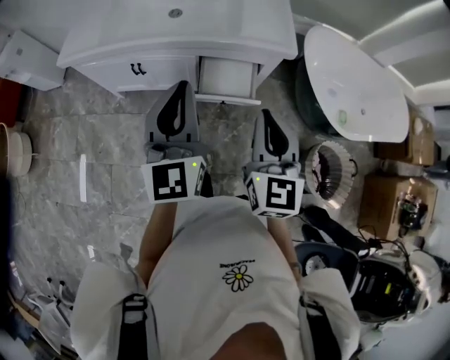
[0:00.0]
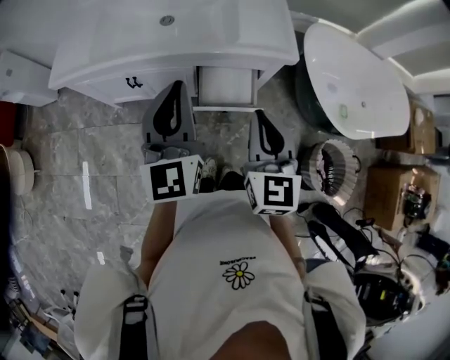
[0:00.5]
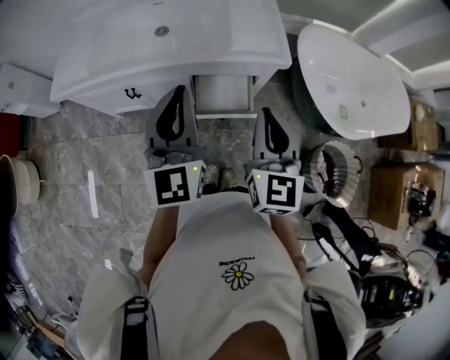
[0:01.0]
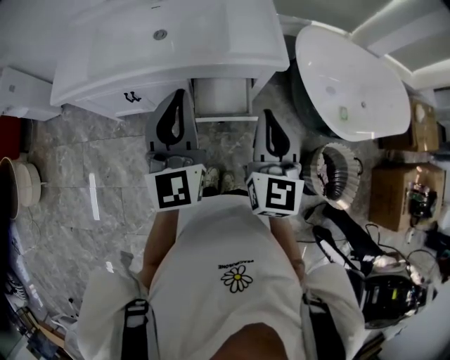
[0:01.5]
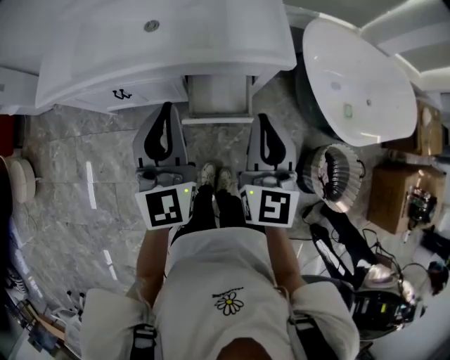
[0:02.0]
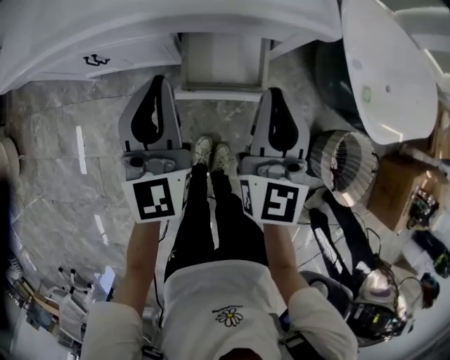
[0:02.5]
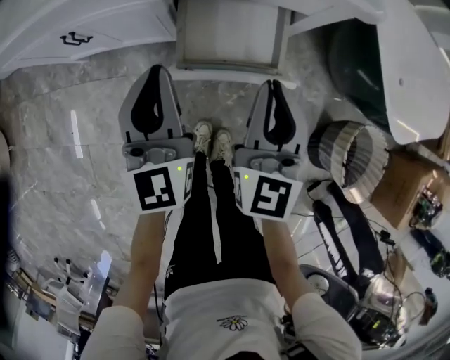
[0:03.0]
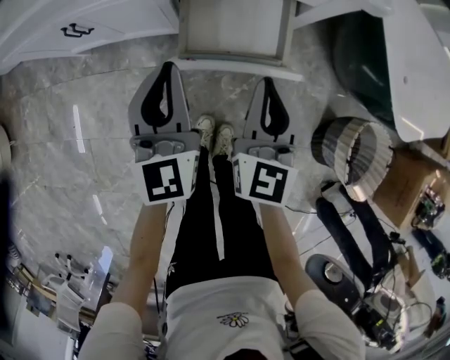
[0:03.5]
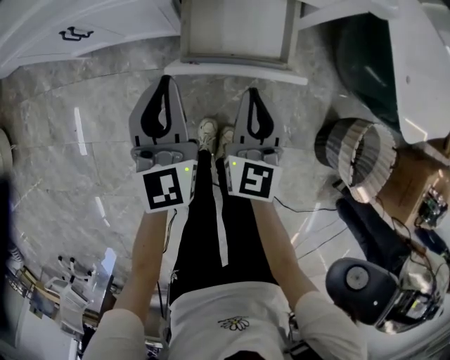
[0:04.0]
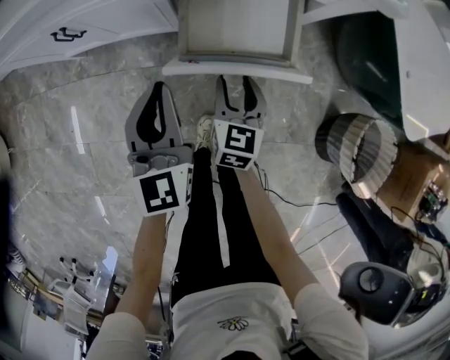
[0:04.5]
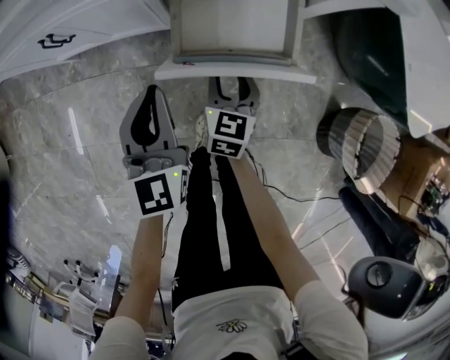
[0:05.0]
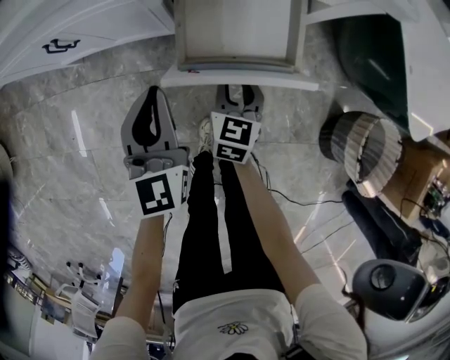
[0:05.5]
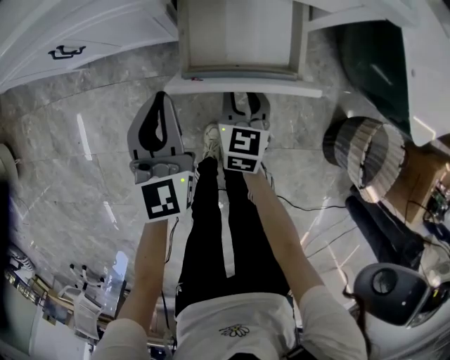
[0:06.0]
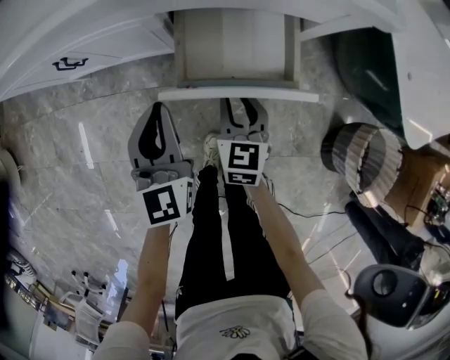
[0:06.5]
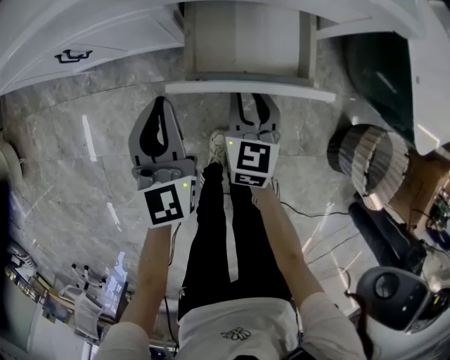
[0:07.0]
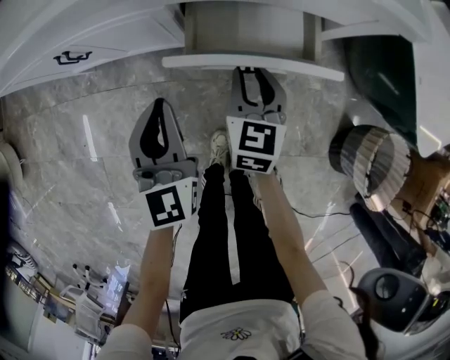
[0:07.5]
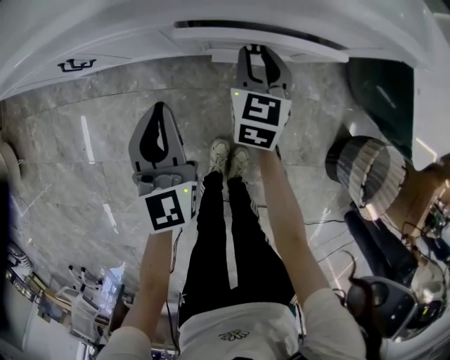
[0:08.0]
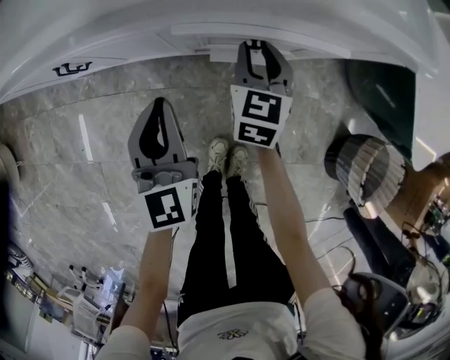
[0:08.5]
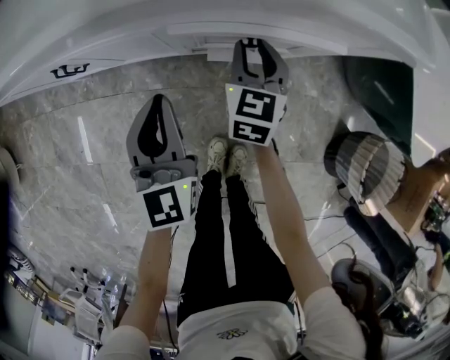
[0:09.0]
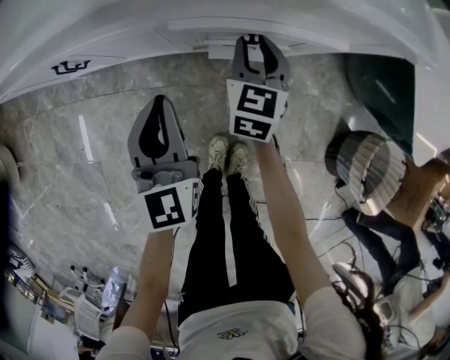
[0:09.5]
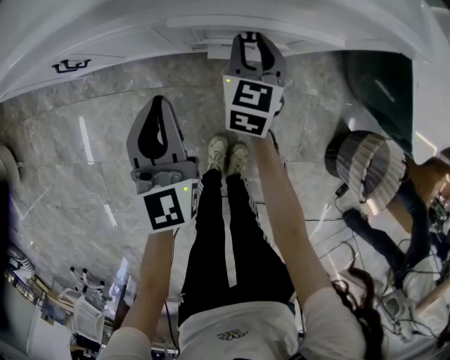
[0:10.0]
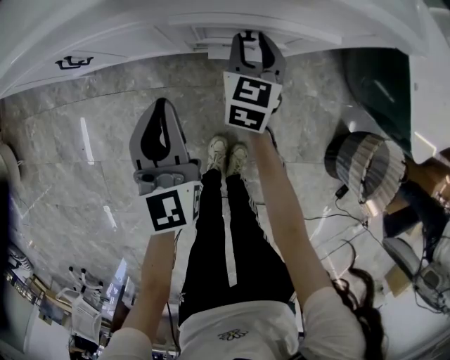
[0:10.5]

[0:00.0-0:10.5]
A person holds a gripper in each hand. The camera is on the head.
0:00.0 to 0:02.0: The two grippers go roughly 10 cm forward.
0:02.0 to 0:04.0: The grippers both shift downward by approximately 35 cm.
0:04.0 to 0:06.5: The left gripper moves roughly 5 cm. Meanwhile the right gripper travels downward by about 10 cm, and opens up.
0:06.5 to 0:08.5: The left gripper is displaced forward by approximately 5 cm. The right gripper goes some 15 cm forward.
0:08.5 to 0:10.5: The grippers move only a little.

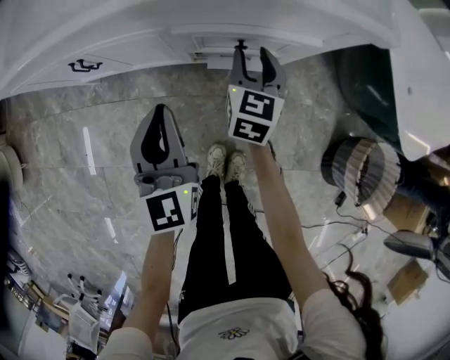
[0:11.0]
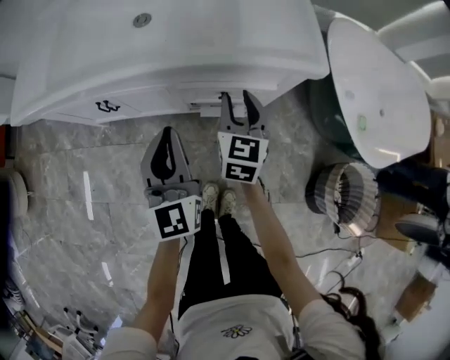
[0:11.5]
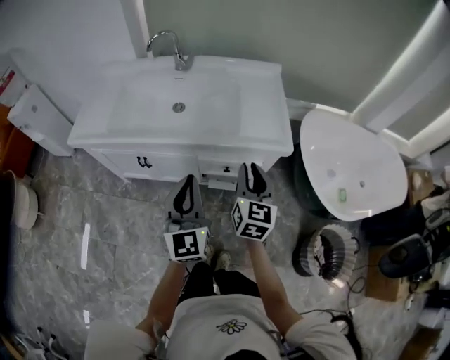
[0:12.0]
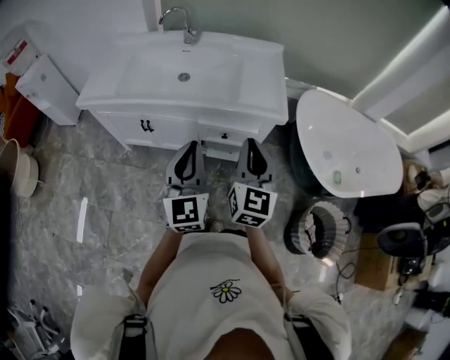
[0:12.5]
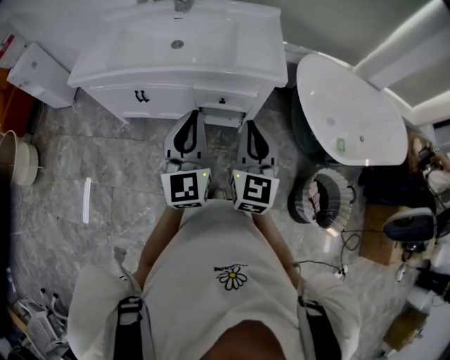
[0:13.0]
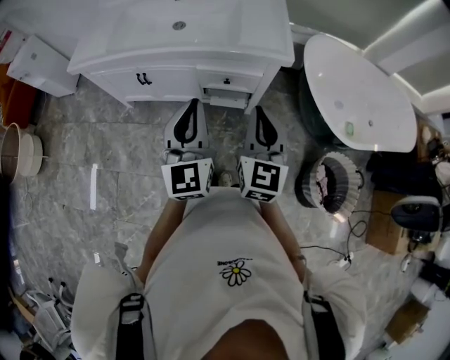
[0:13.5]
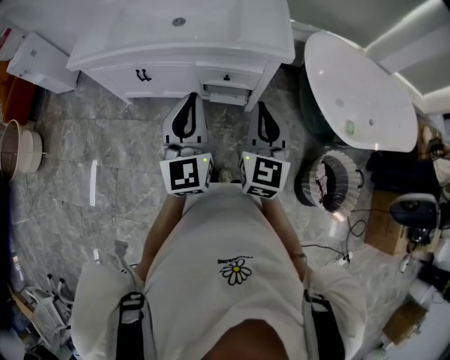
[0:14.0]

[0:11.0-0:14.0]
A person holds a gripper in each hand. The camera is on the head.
0:11.0 to 0:12.5: The left gripper is displaced upward by roughly 30 cm. Meanwhile the right gripper travels upward and backward by approximately 50 cm, rotates roughly 30 degrees, and closes up.
0:12.5 to 0:14.0: The right gripper shifts by about 5 cm.

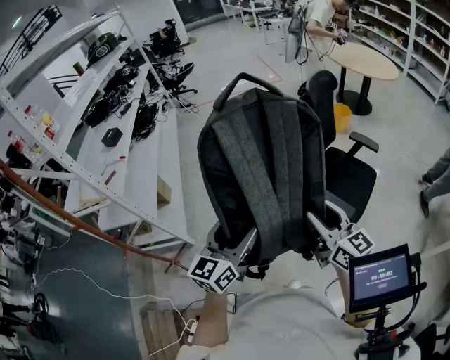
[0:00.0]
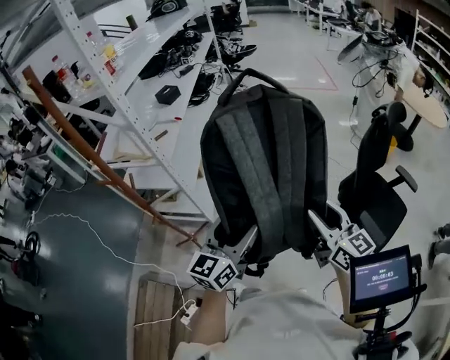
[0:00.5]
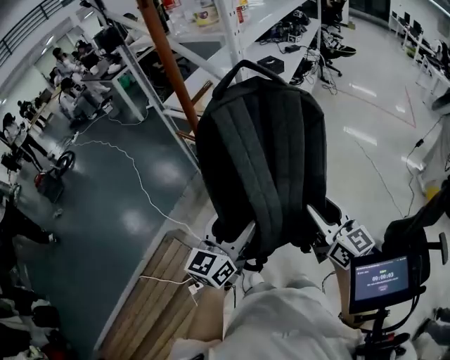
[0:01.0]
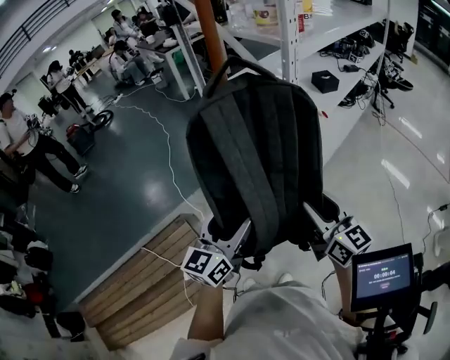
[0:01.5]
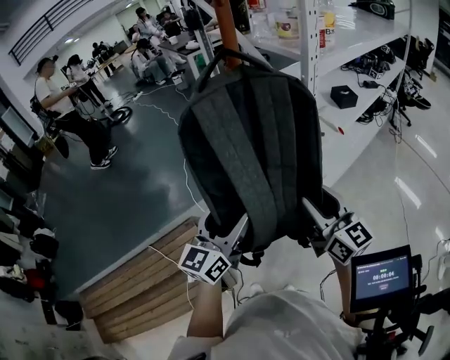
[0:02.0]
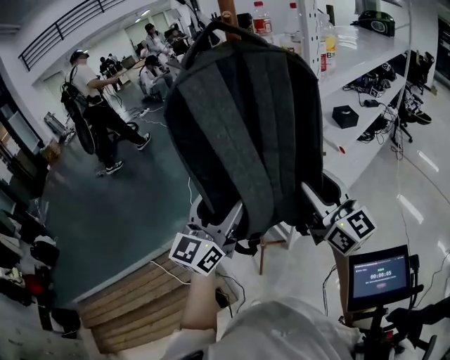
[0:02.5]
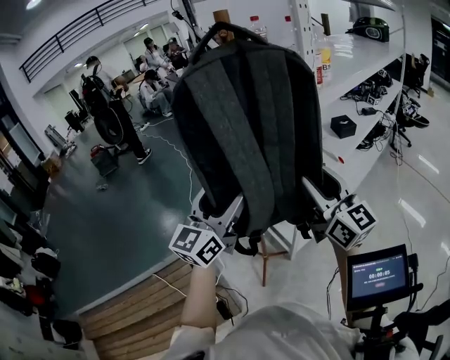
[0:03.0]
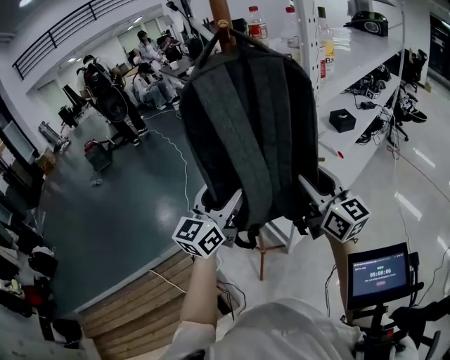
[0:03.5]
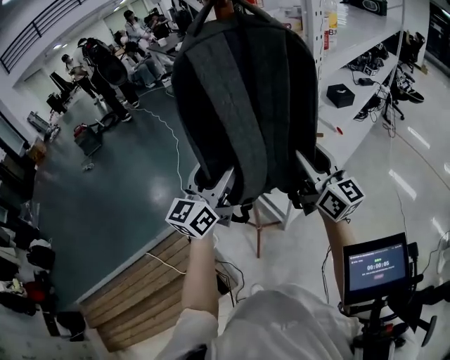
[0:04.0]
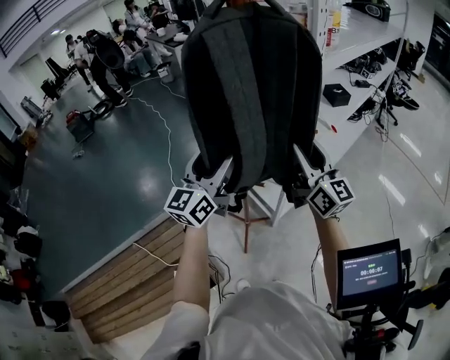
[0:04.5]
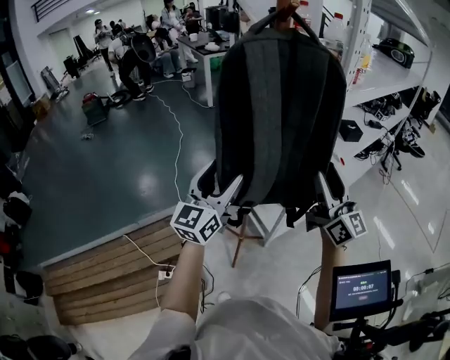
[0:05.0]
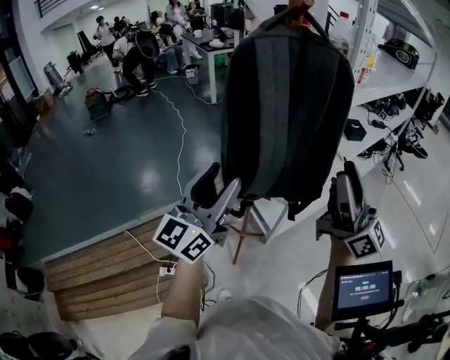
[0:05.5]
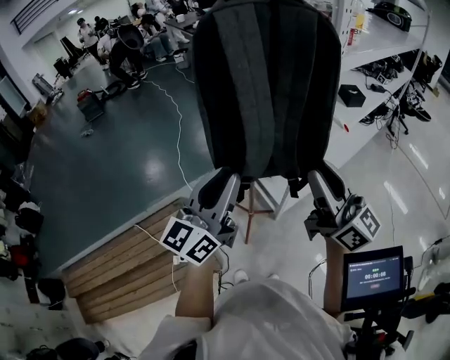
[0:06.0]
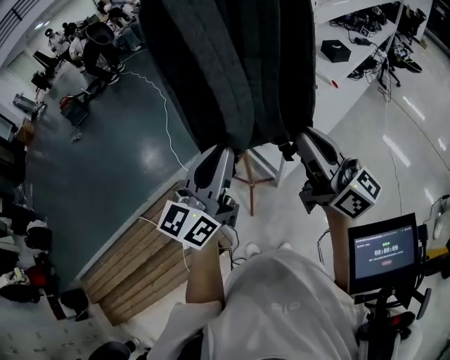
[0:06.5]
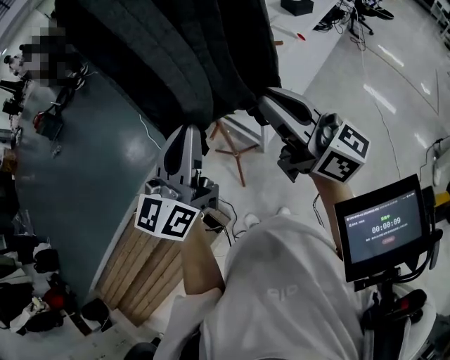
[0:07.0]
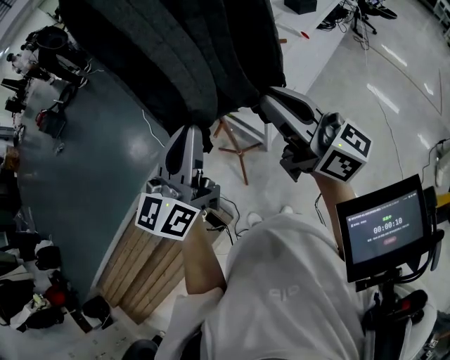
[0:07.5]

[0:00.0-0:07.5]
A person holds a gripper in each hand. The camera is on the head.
0:00.0 to 0:02.0: The two grippers travel together, approximately 60 cm. The left gripper swivels roughly 70 degrees; the right gripper swivels roughly 60 degrees.
0:02.0 to 0:04.0: The right gripper goes roughly 10 cm forward. The left gripper moves forward and upward, roughly 15 cm.
0:04.0 to 0:05.5: The left gripper heads backward, covering approximately 10 cm; the right gripper travels backward and upward by roughly 15 cm, and turns by some 20 degrees.
0:05.5 to 0:07.5: The right gripper goes approximately 10 cm downward, and closes its fingers, while the left gripper travels downward and to the right by approximately 10 cm, and closes its fingers.

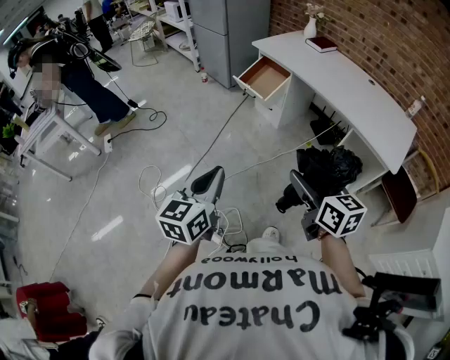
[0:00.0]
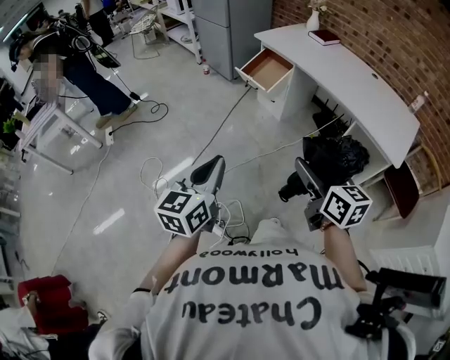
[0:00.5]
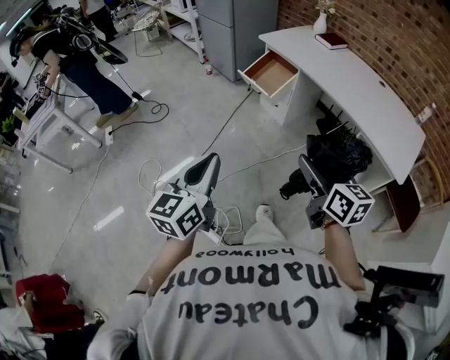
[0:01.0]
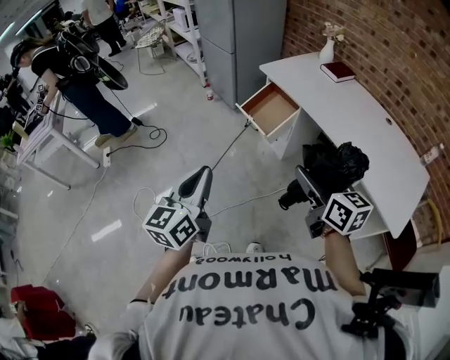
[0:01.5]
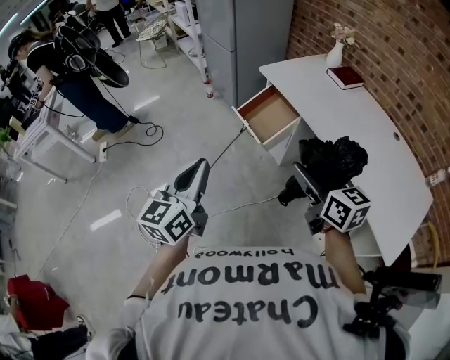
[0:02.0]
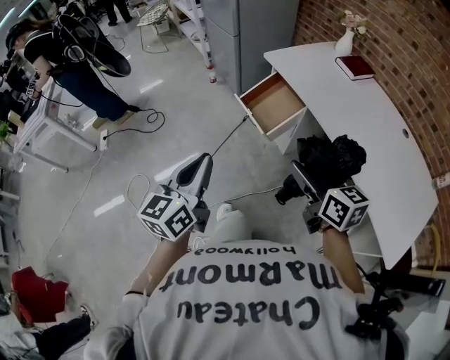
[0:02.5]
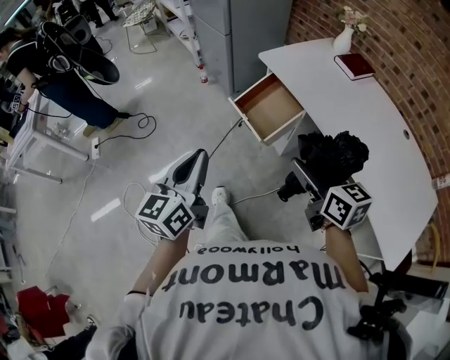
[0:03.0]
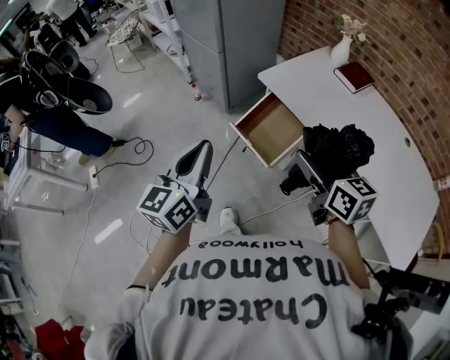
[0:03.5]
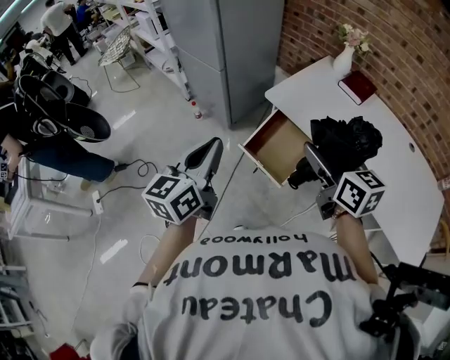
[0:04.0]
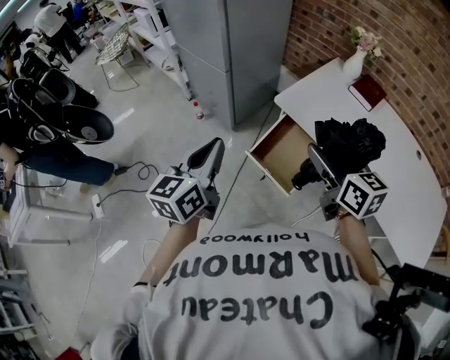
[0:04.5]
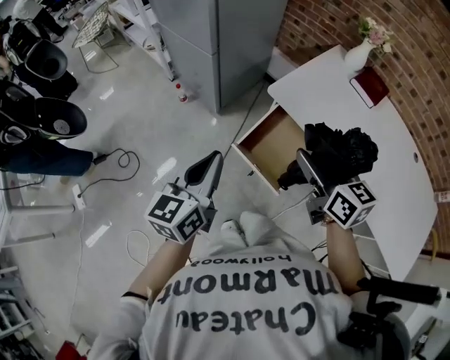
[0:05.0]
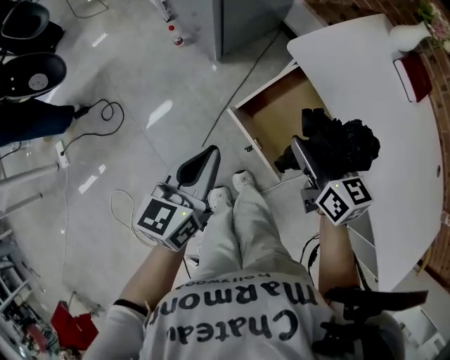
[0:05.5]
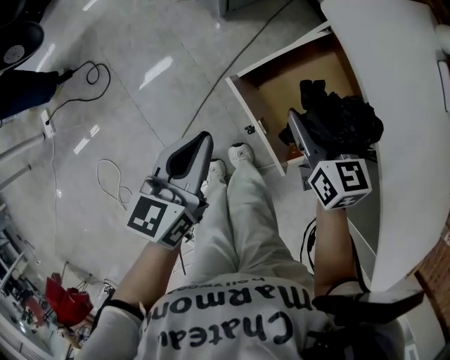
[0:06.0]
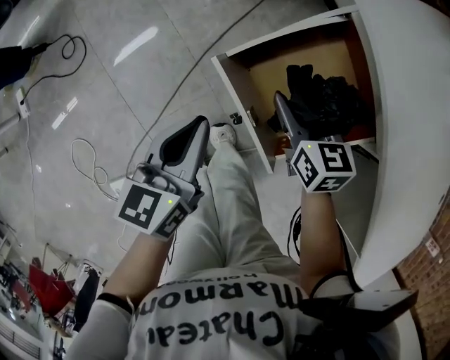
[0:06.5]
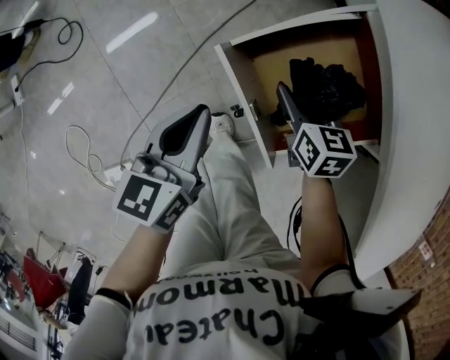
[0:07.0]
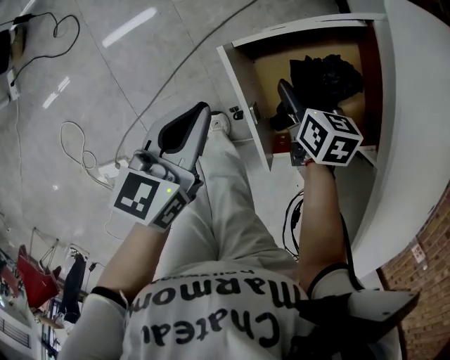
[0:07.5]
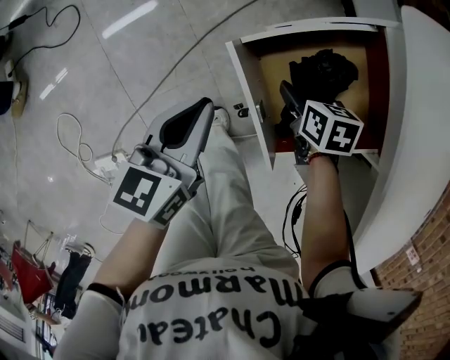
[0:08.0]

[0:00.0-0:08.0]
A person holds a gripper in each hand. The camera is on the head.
0:00.0 to 0:02.0: The two grippers go approximately 35 cm forward.
0:02.0 to 0:04.0: Both grippers travel together forward, roughly 35 cm.
0:04.0 to 0:06.0: The right gripper is displaced downward and forward by approximately 40 cm, and rotates about 20 degrees. Meanwhile the left gripper goes approximately 30 cm downward, and rotates about 20 degrees.
0:06.0 to 0:08.0: The left gripper goes some 10 cm downward. Meanwhile the right gripper goes about 20 cm downward, and tips its fingers downward by roughly 40 degrees.
